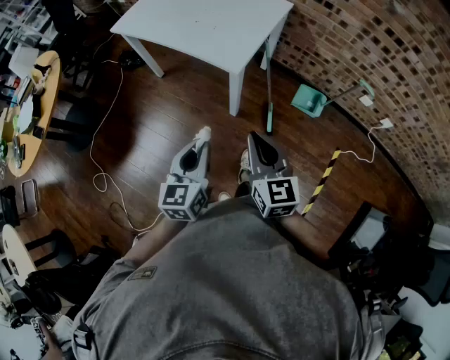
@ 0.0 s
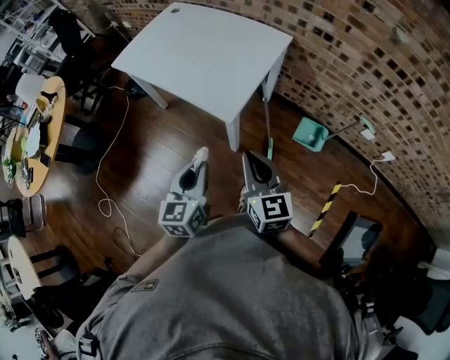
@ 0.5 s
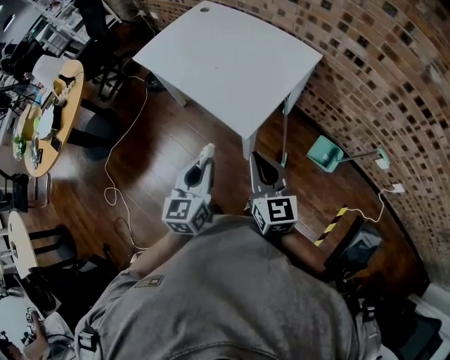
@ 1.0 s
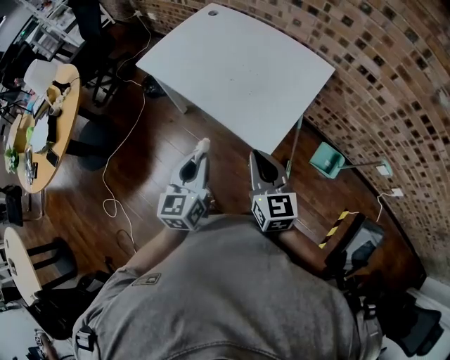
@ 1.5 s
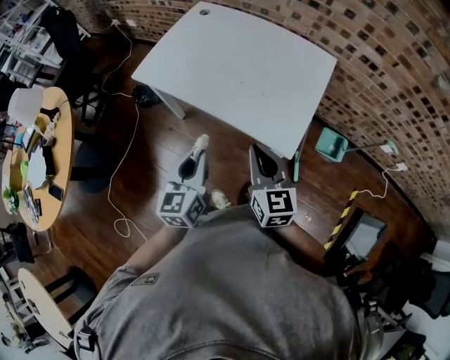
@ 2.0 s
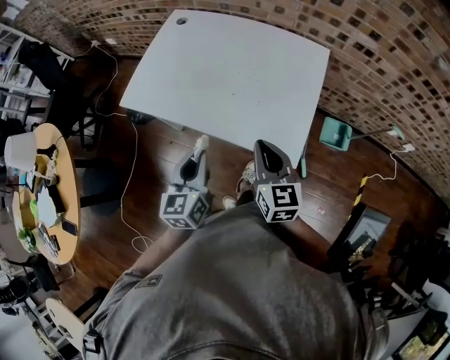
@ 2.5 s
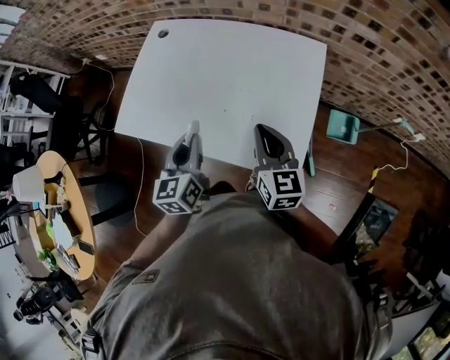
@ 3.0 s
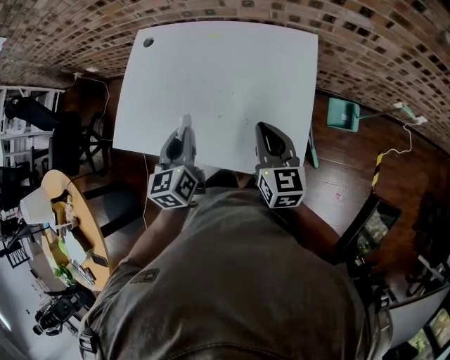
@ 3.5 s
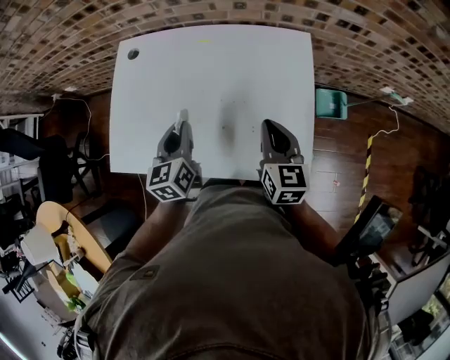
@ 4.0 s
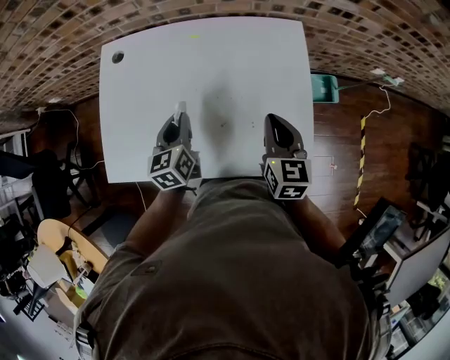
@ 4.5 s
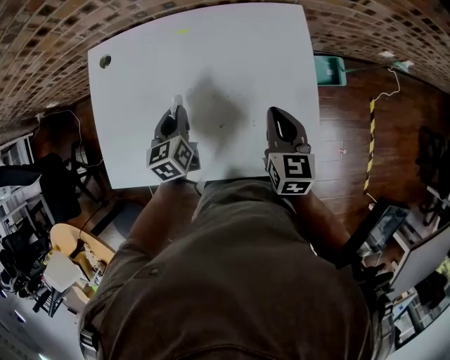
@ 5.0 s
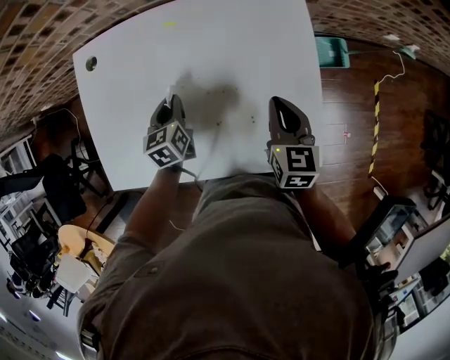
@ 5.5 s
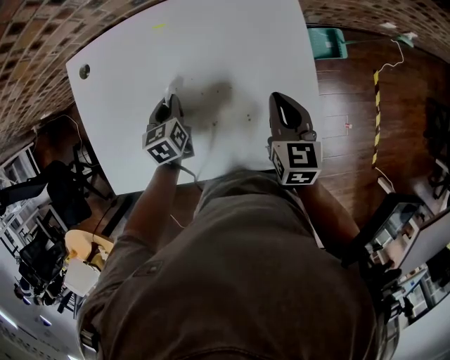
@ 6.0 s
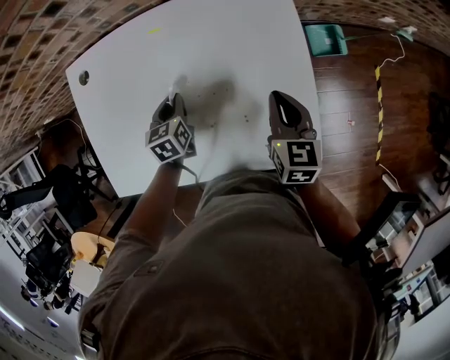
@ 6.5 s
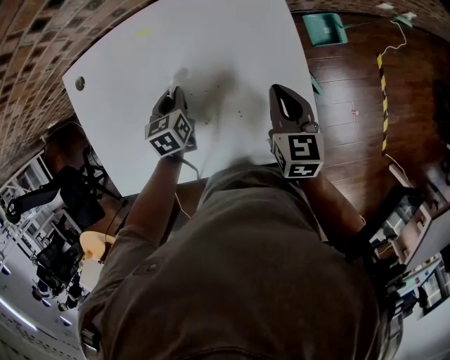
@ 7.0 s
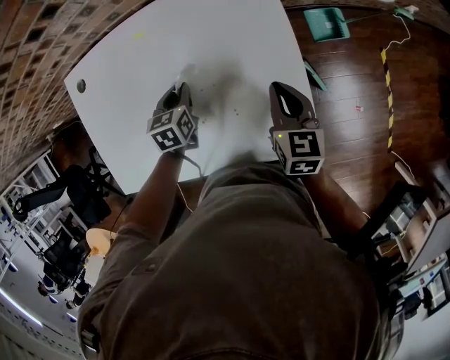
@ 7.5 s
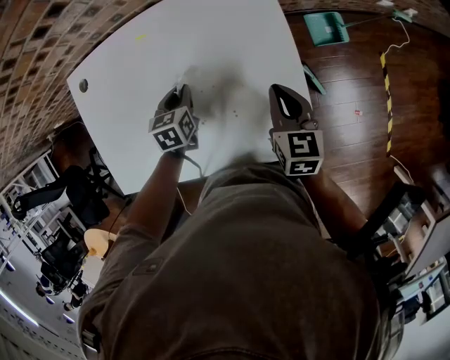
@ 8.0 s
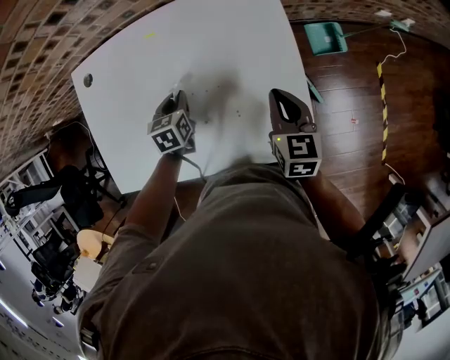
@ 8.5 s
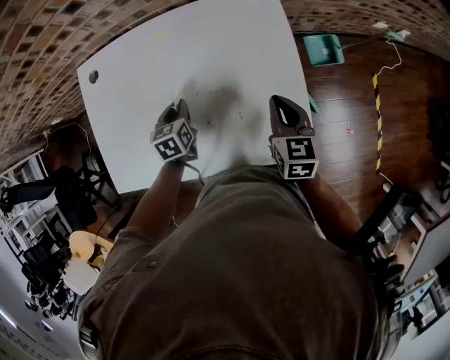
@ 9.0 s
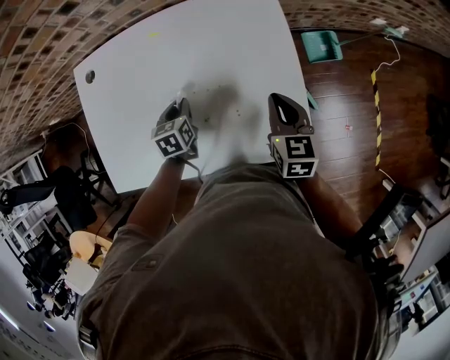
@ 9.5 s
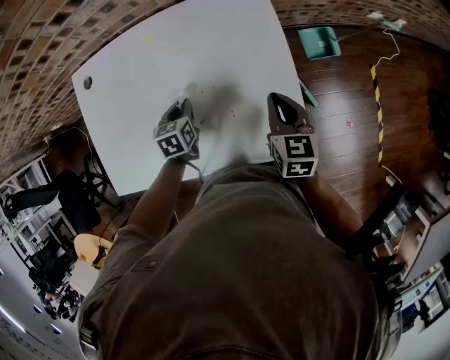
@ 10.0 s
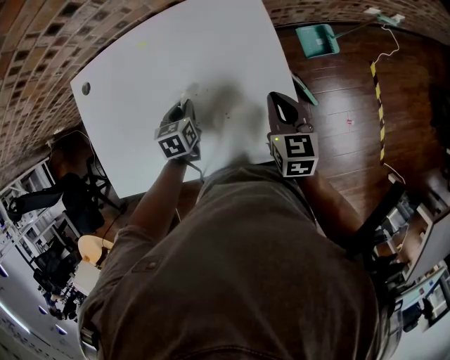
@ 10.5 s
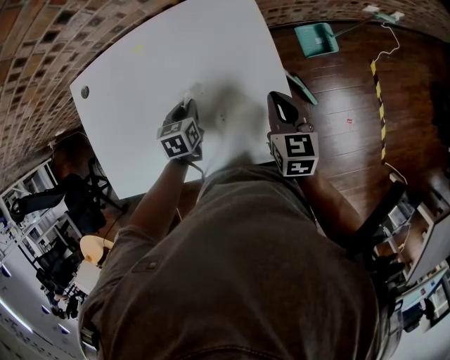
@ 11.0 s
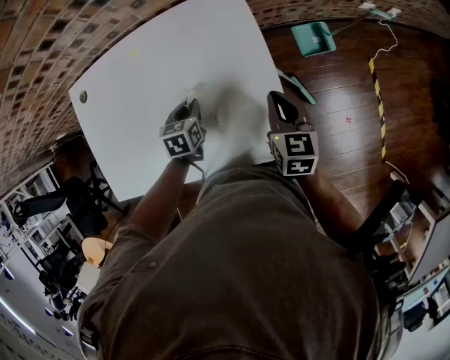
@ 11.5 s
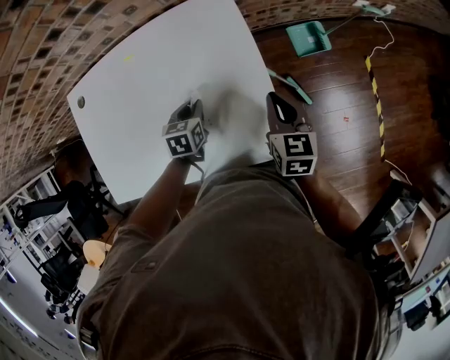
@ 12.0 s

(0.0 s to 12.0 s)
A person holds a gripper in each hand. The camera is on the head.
0.0 s - 2.0 s: Both grippers travel together forward and to the left, approximately 35 cm.
2.0 s - 4.0 s: Both grippers move forward, roughly 30 cm. The right gripper swivels some 30 degrees.
4.0 s - 6.0 s: The right gripper moves downward, some 10 cm, while the left gripper goes about 20 cm downward and forward, and changes its angle by about 20 degrees.
6.0 s - 8.0 s: The right gripper moves approximately 5 cm. The left gripper goes approximately 10 cm to the right.
8.0 s - 10.0 s: There are only small adjustments of the grippers.
10.0 s - 12.0 s: Both grippers travel together to the right, about 10 cm.

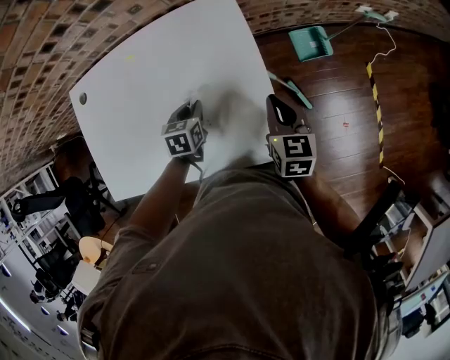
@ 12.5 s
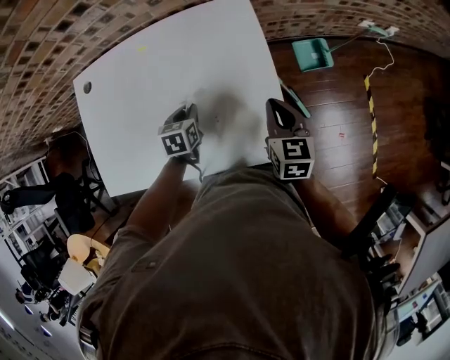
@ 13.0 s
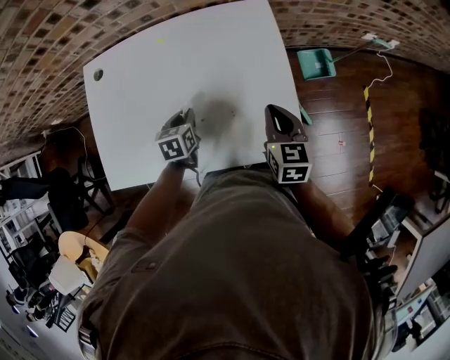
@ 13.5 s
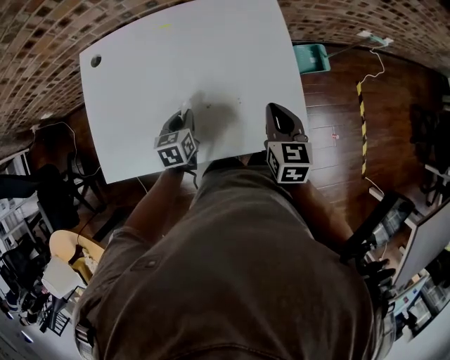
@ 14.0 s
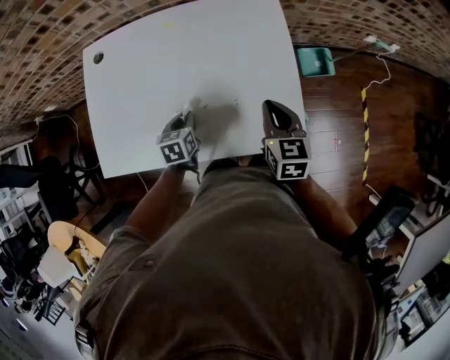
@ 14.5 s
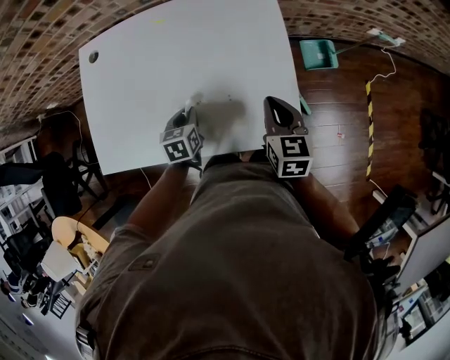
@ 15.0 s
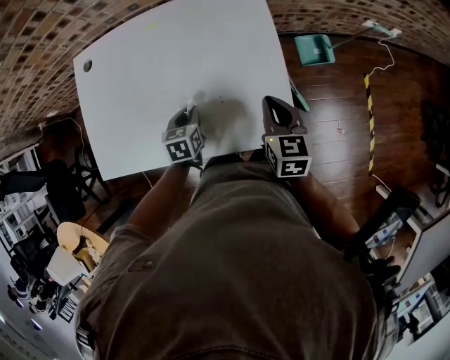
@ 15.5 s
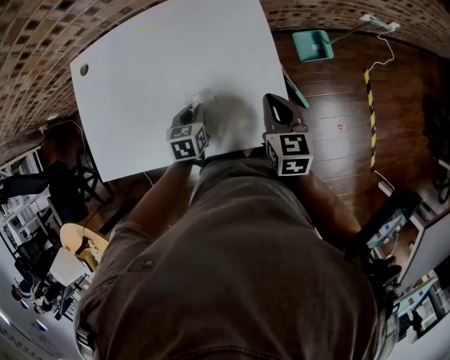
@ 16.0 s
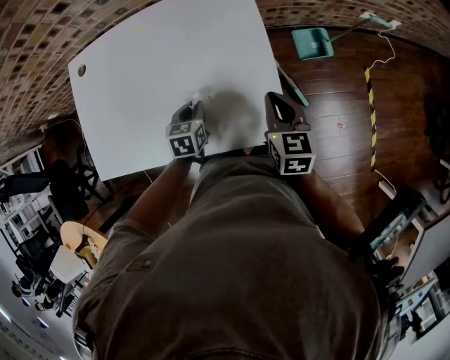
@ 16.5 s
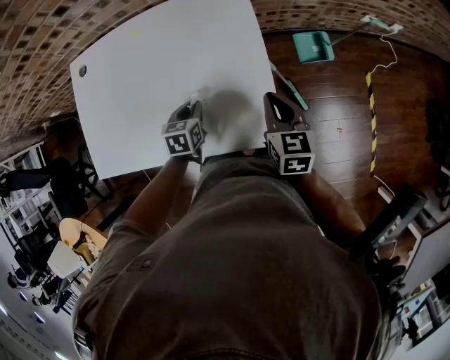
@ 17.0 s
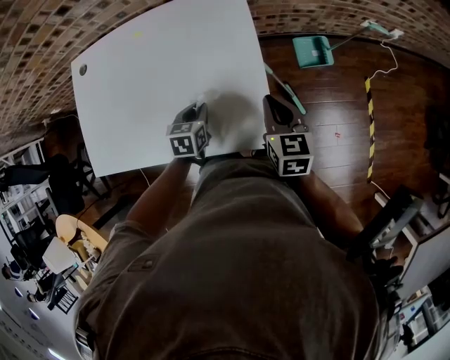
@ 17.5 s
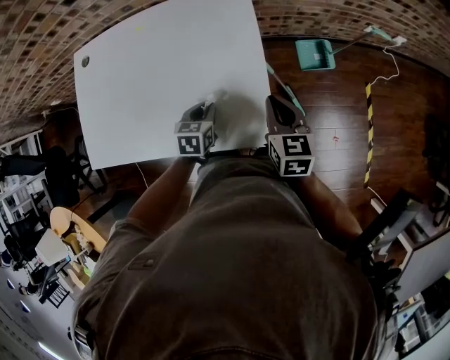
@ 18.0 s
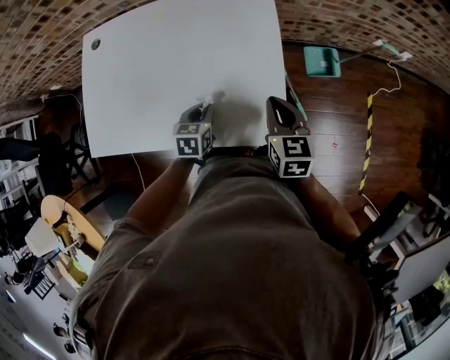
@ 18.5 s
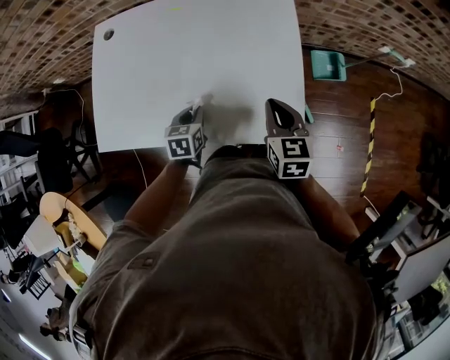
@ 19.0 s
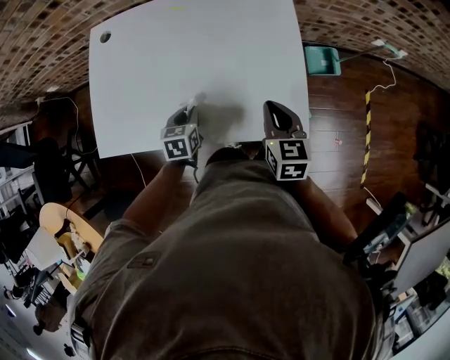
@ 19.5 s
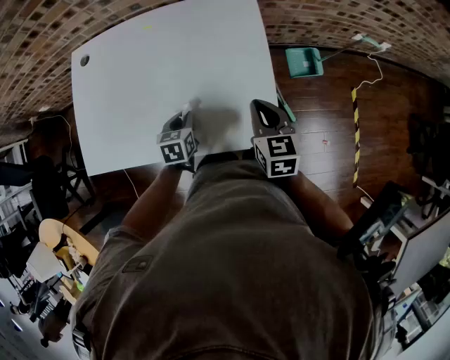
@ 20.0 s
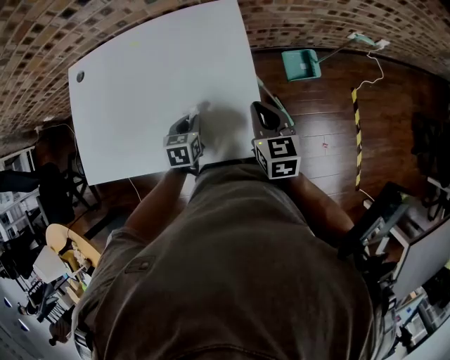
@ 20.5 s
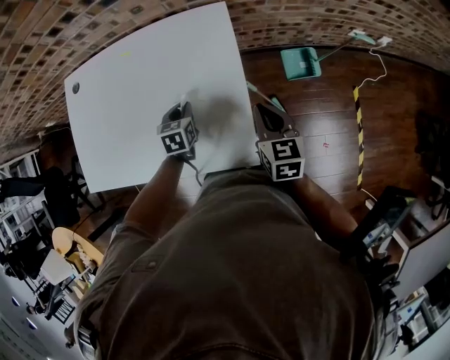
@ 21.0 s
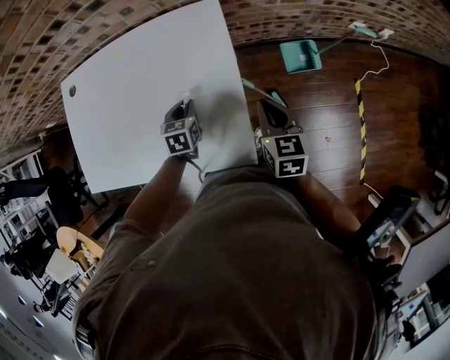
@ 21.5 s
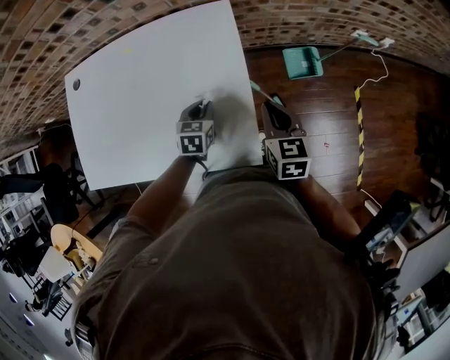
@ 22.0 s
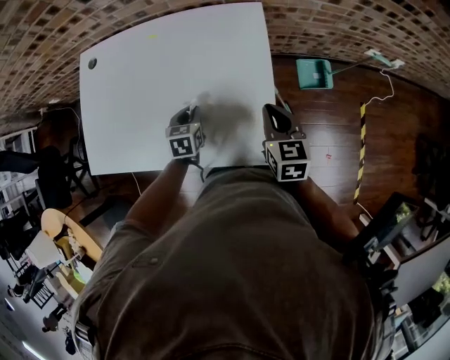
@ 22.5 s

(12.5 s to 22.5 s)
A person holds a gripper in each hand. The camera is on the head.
12.5 s - 14.5 s: The left gripper moves to the left and backward, about 15 cm, while the right gripper heads to the left, covering roughly 10 cm.
14.5 s - 16.5 s: Both grippers move to the right, roughly 10 cm.
16.5 s - 18.5 s: The left gripper goes to the right and returns, approximately 10 cm each way.
18.5 s - 20.5 s: The left gripper reaches about 15 cm to the left, then returns; the right gripper goes to the left and returns, about 10 cm each way.
20.5 s - 22.5 s: The right gripper travels to the right and back again, about 5 cm each way; the left gripper goes to the right and returns, roughly 10 cm each way.

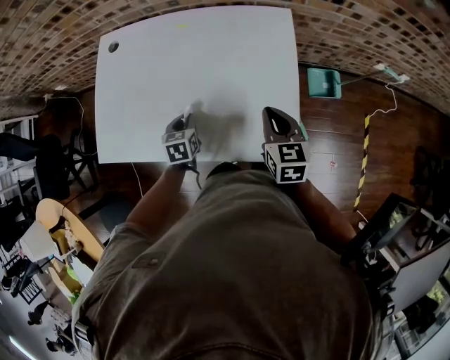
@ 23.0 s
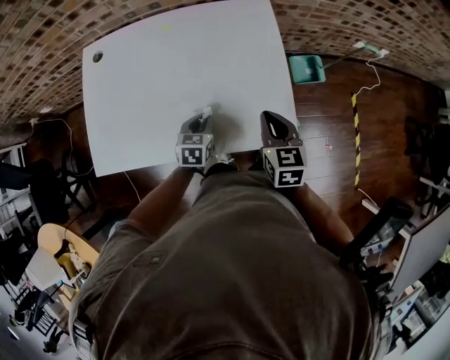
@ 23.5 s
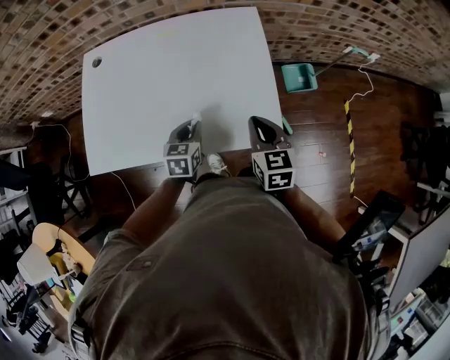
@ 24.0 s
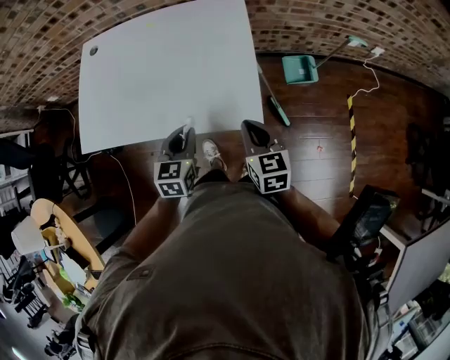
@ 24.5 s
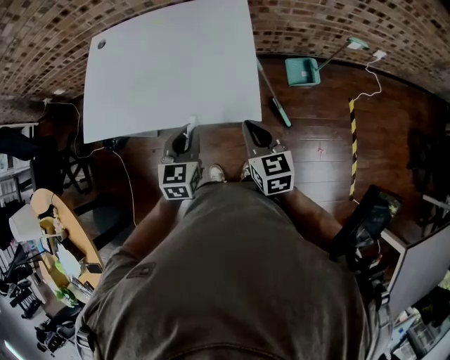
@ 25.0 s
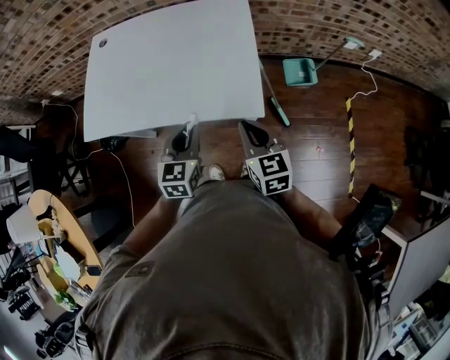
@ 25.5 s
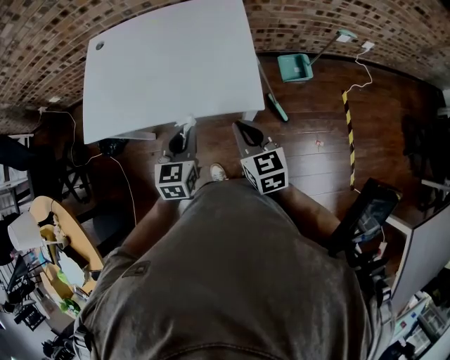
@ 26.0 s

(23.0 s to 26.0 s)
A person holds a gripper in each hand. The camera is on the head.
23.0 s - 24.5 s: The right gripper travels backward and to the right by about 15 cm, while the left gripper shifts roughly 25 cm to the right, backward and upward, and changes its angle by about 20 degrees.
24.5 s - 26.0 s: The left gripper shifts about 5 cm backward. The right gripper shifts approximately 10 cm backward and to the left.

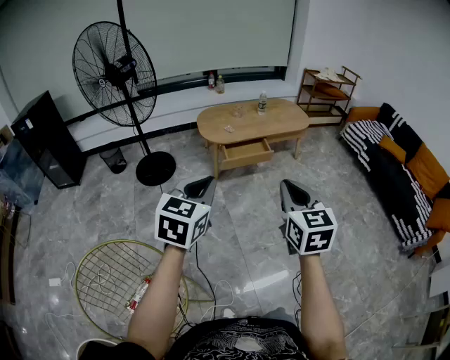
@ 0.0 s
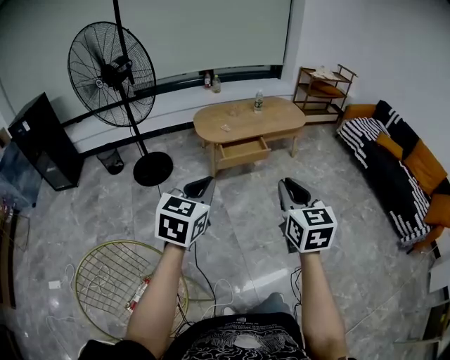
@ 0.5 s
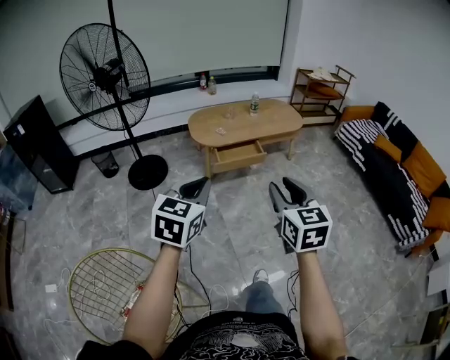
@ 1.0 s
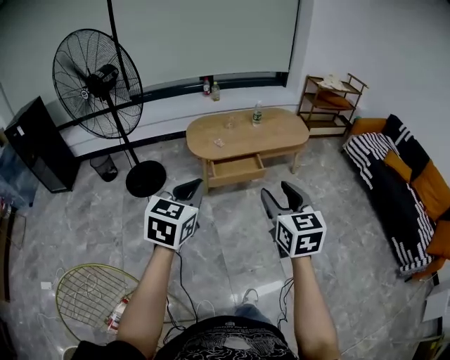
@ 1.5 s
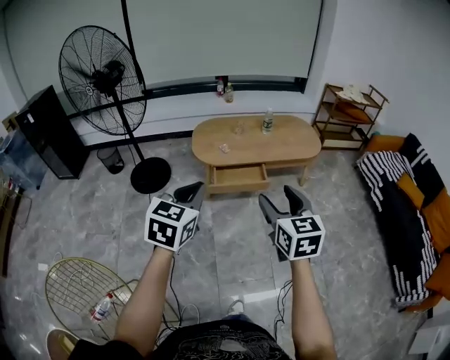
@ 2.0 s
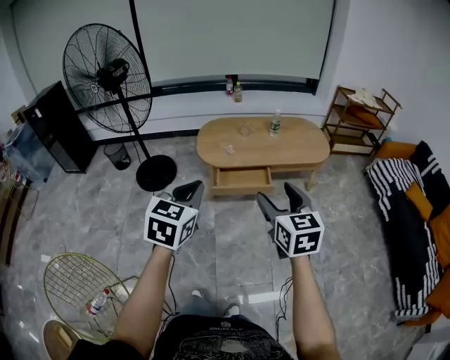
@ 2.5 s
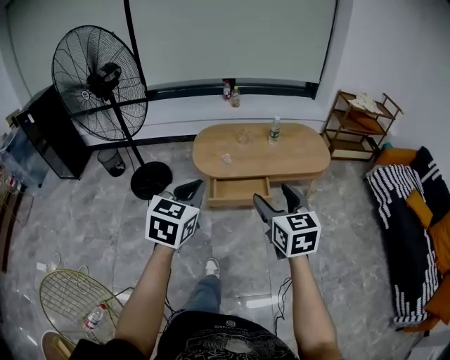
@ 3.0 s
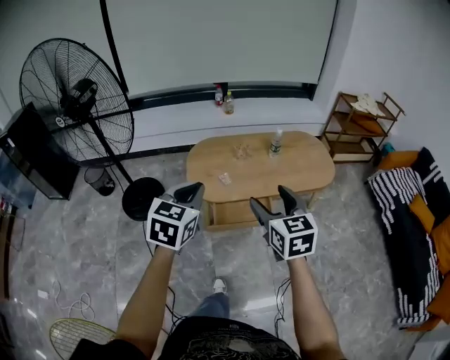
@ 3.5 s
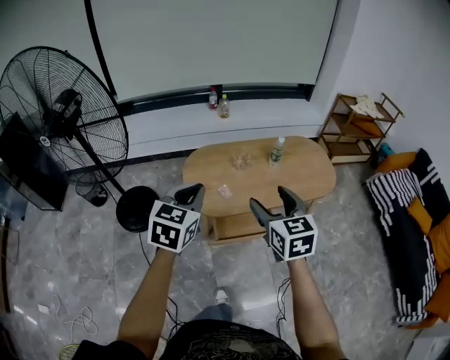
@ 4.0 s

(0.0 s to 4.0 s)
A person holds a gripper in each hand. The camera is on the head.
0.0 s - 2.0 s: Both grippers travel together forward and to the right, some 25 cm. The right gripper opens up.
2.0 s - 4.0 s: The two grippers travel together, forward, some 40 cm.
